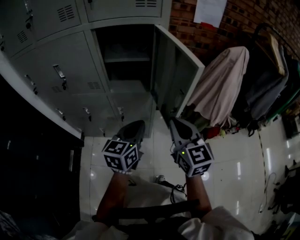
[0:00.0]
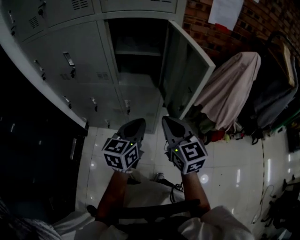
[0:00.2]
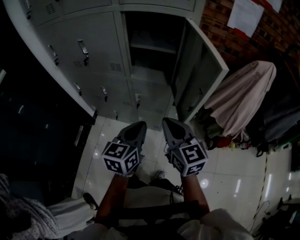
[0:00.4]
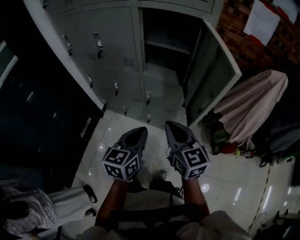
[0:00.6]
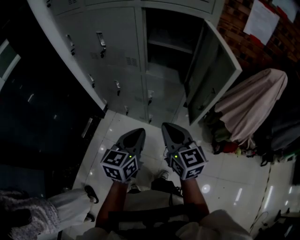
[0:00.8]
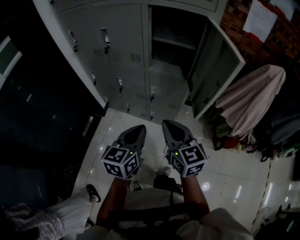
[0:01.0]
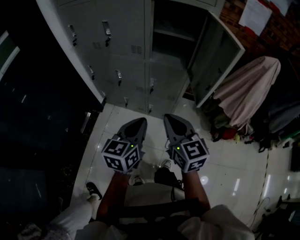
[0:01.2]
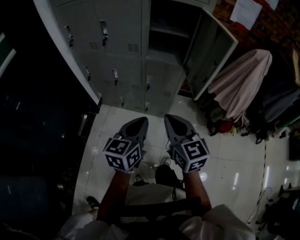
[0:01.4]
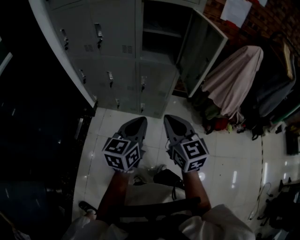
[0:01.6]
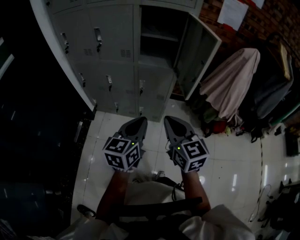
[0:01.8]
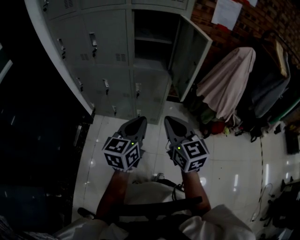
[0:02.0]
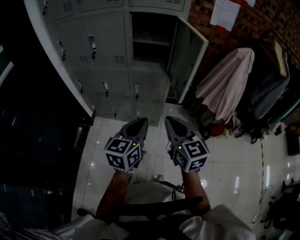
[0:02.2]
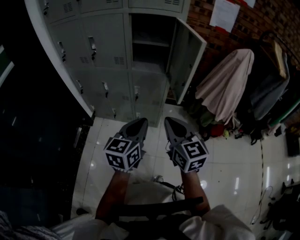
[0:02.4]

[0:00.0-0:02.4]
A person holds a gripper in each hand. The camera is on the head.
0:00.0 to 0:01.2: Both grippers move to the left and backward, approximately 20 cm. The right gripper swivels some 20 degrees.
0:01.2 to 0:02.4: The right gripper travels to the right and backward by roughly 10 cm. The left gripper goes some 5 cm to the right.

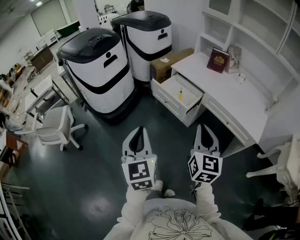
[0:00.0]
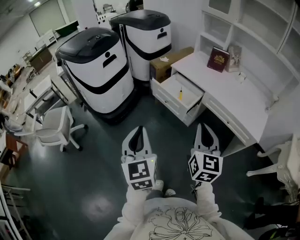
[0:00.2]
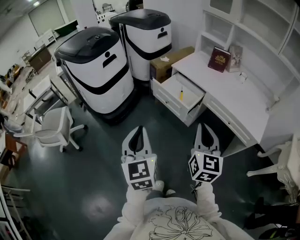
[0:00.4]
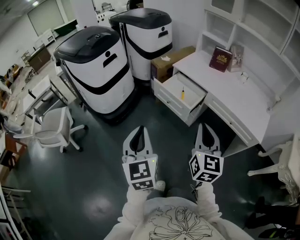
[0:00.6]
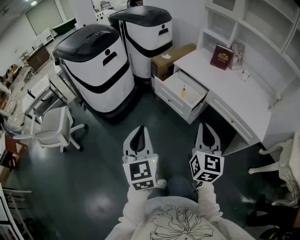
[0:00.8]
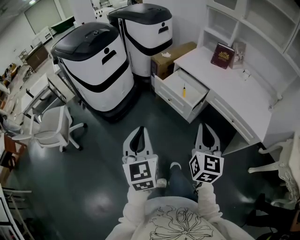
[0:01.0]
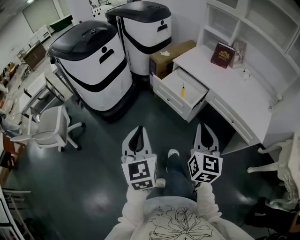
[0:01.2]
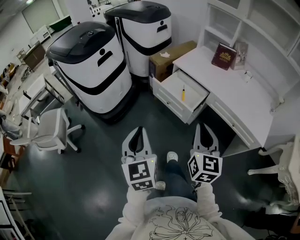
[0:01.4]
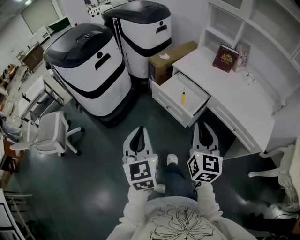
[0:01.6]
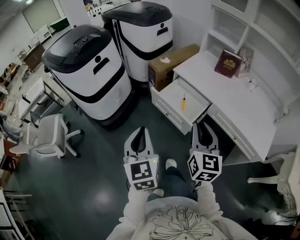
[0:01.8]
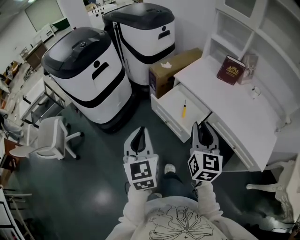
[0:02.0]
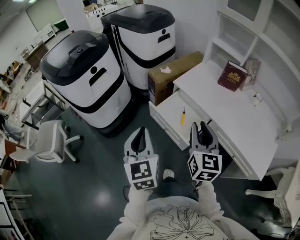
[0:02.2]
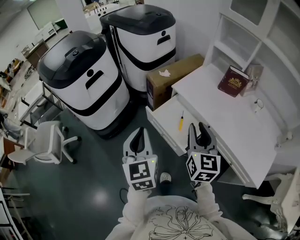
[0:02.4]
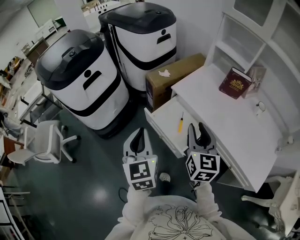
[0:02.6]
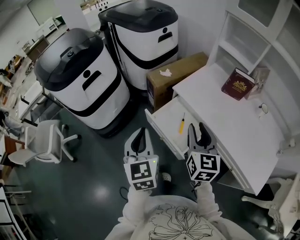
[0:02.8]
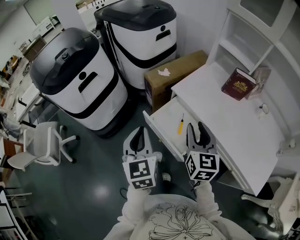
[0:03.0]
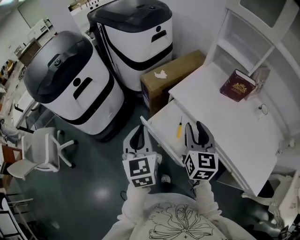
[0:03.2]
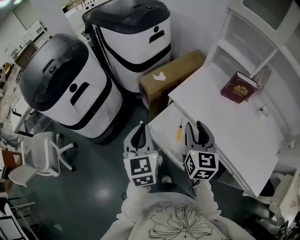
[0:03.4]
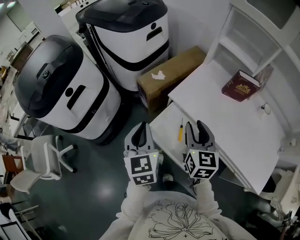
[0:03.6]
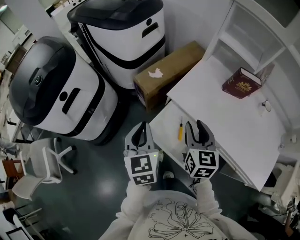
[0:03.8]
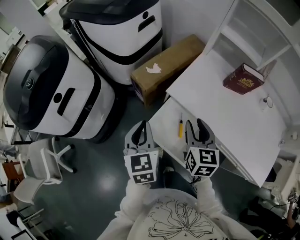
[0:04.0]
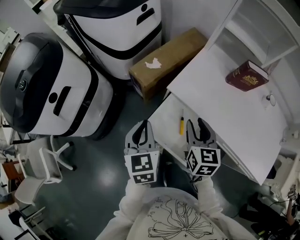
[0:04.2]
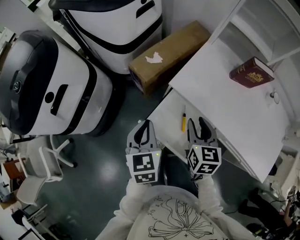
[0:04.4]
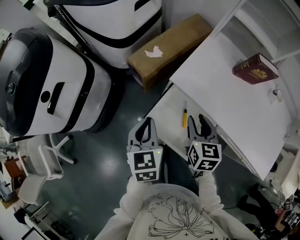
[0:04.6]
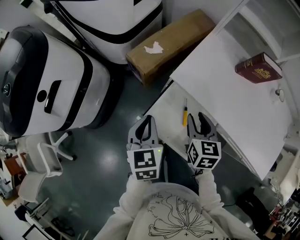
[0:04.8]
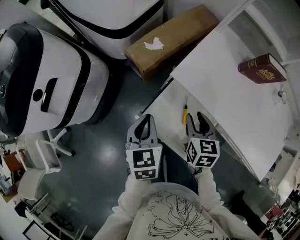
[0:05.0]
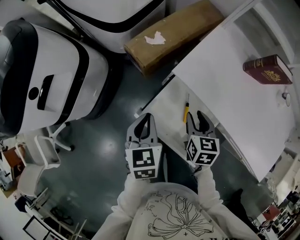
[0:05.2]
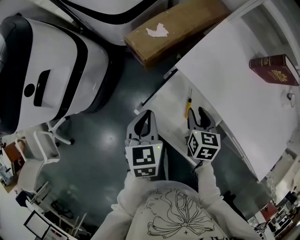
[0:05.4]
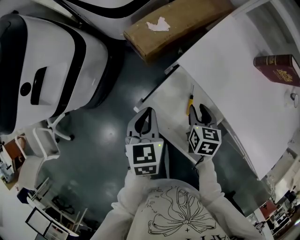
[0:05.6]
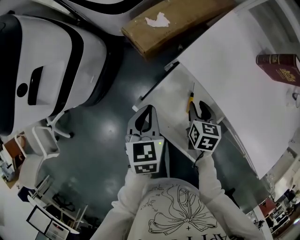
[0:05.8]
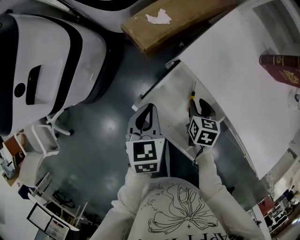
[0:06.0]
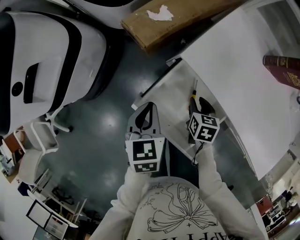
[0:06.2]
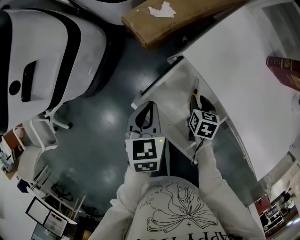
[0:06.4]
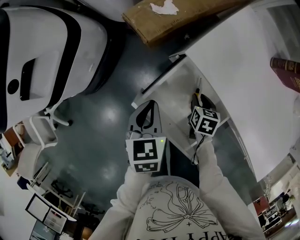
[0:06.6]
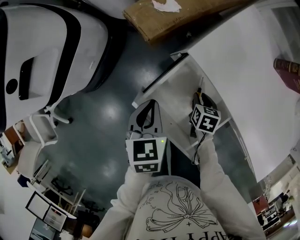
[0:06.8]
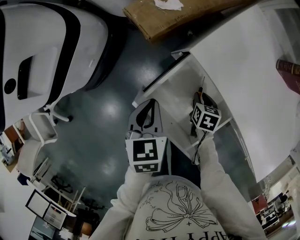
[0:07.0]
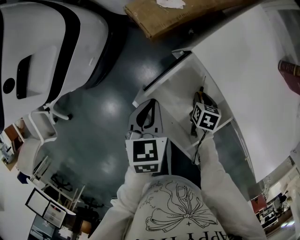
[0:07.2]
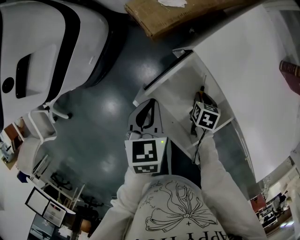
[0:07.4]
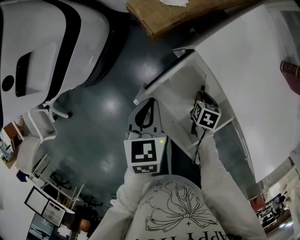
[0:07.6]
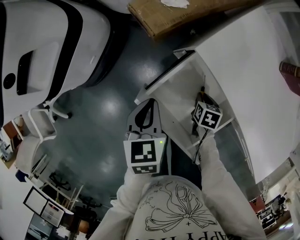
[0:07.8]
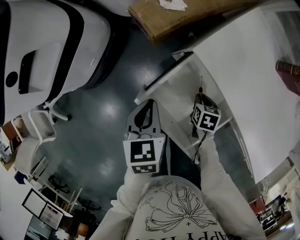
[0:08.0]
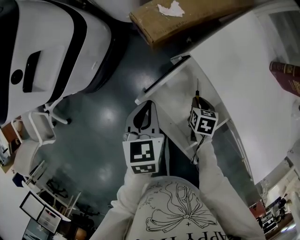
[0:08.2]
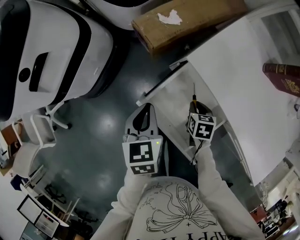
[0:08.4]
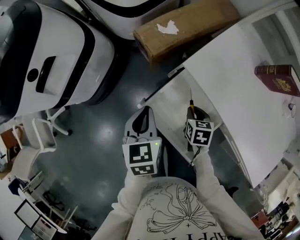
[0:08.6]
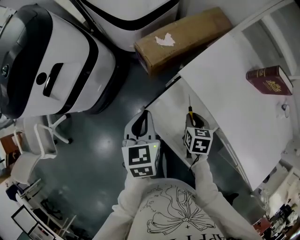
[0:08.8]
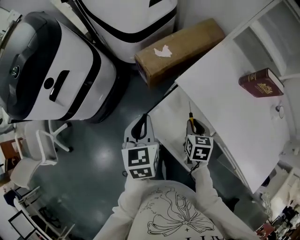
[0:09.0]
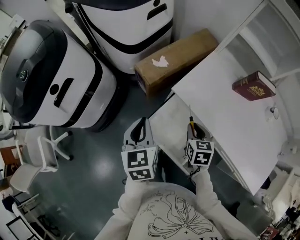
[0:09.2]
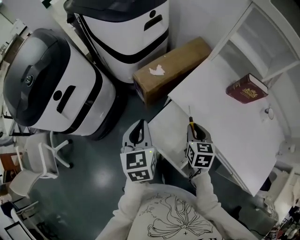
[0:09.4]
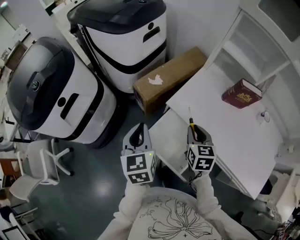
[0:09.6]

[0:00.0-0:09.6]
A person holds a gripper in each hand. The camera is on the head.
0:00.0 to 0:01.6: The two grippers go about 15 cm forward.
0:01.6 to 0:03.2: Both grippers travel together forward, roughly 35 cm. The right gripper opens up.
0:03.2 to 0:04.8: The grippers both shift downward and forward by about 20 cm. The left gripper rotates roughly 20 degrees. The right gripper rotates about 20 degrees.
0:04.8 to 0:06.4: The left gripper goes some 10 cm downward, while the right gripper travels downward by about 25 cm, and turns by approximately 20 degrees.
0:06.4 to 0:08.0: The right gripper moves some 5 cm.
0:08.0 to 0:09.6: The grippers both shift upward by about 30 cm. The left gripper rotates approximately 30 degrees, while the right gripper tips its fingers upward by roughly 30 degrees.

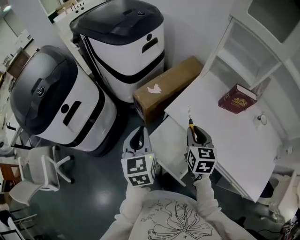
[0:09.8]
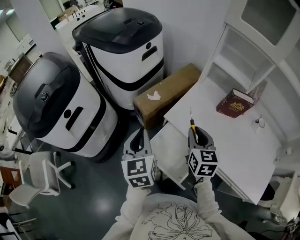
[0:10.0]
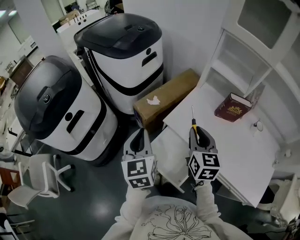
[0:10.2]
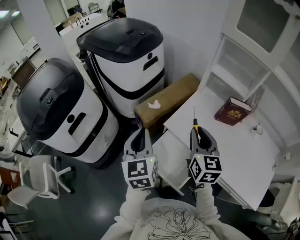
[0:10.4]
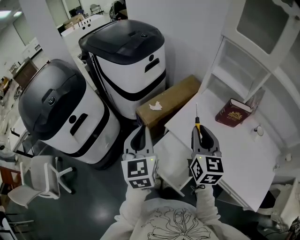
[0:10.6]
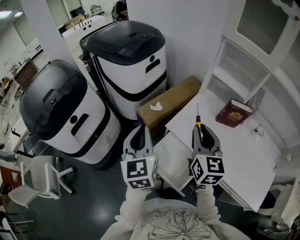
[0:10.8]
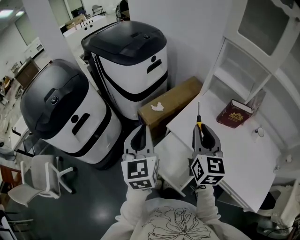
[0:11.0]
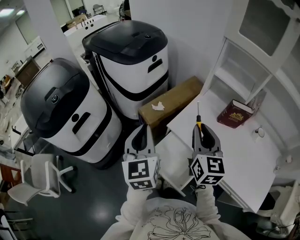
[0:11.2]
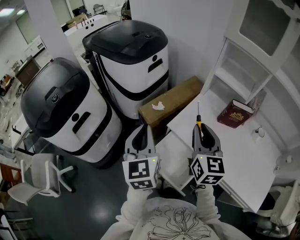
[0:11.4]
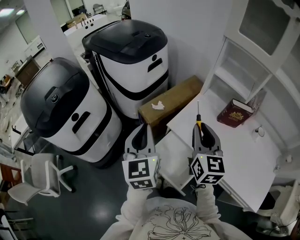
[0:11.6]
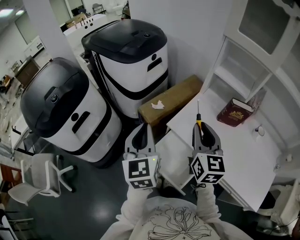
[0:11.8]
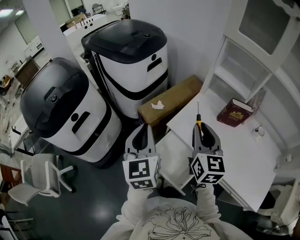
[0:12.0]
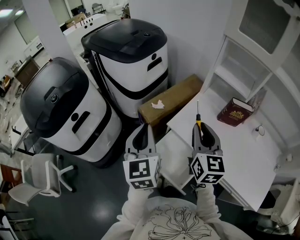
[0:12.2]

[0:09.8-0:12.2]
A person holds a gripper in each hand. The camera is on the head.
0:09.8 to 0:11.0: The grippers both shift upward by roughly 15 cm. The right gripper rotates approximately 20 degrees.
0:11.0 to 0:12.2: Both grippers stay put.

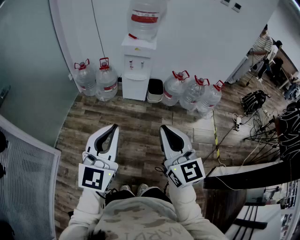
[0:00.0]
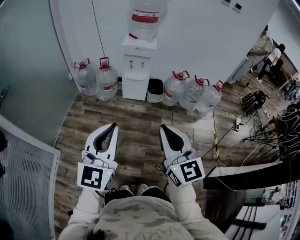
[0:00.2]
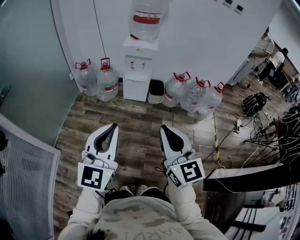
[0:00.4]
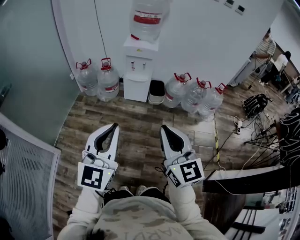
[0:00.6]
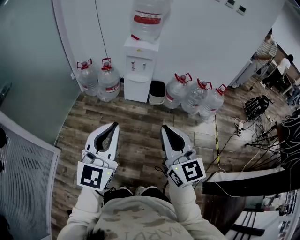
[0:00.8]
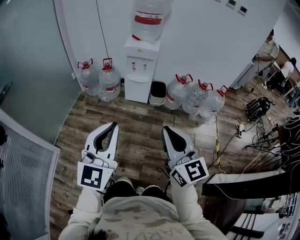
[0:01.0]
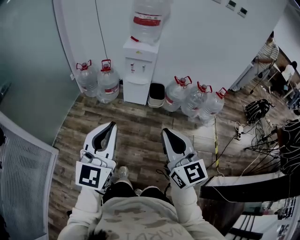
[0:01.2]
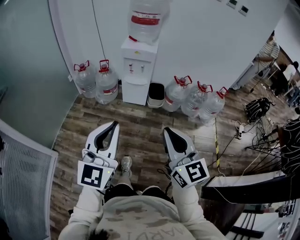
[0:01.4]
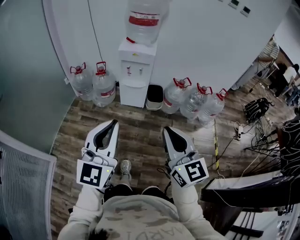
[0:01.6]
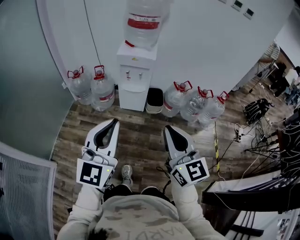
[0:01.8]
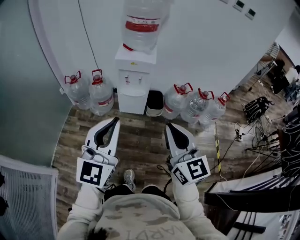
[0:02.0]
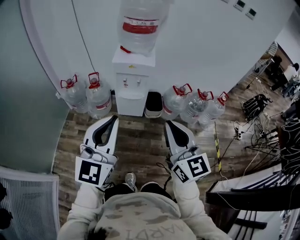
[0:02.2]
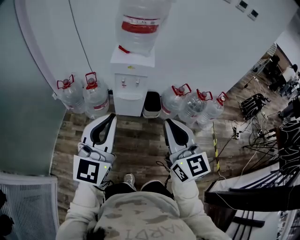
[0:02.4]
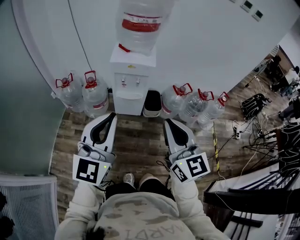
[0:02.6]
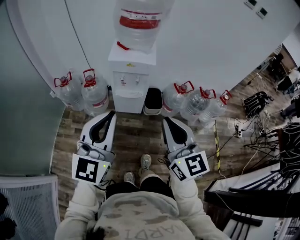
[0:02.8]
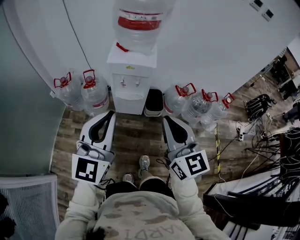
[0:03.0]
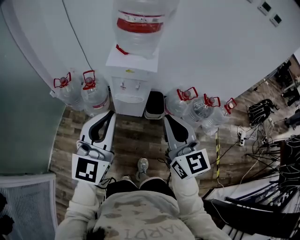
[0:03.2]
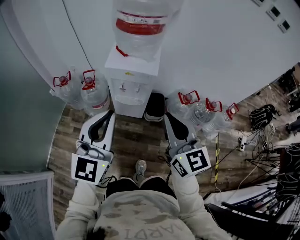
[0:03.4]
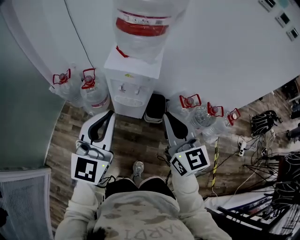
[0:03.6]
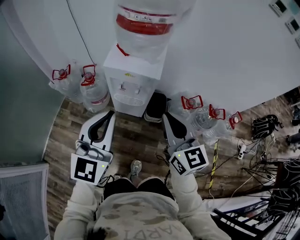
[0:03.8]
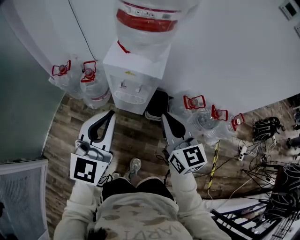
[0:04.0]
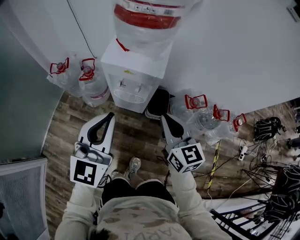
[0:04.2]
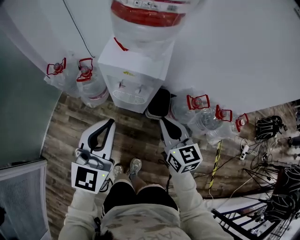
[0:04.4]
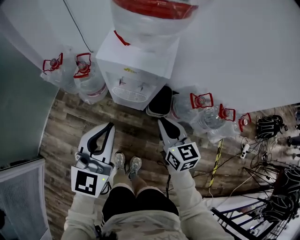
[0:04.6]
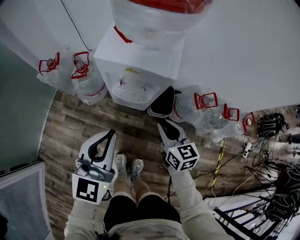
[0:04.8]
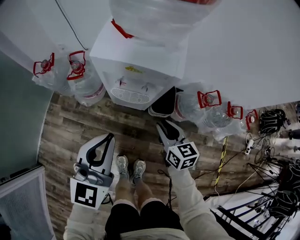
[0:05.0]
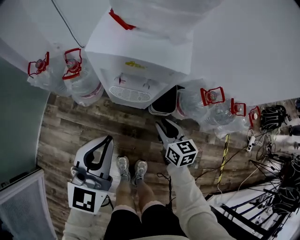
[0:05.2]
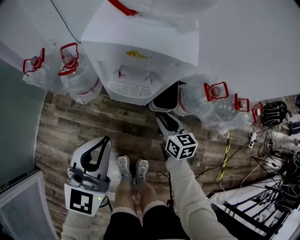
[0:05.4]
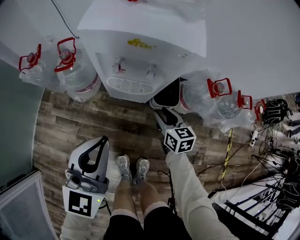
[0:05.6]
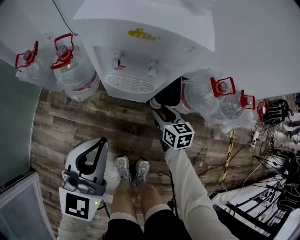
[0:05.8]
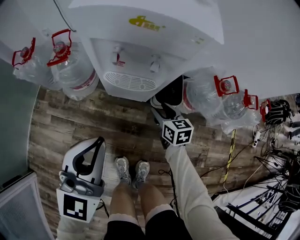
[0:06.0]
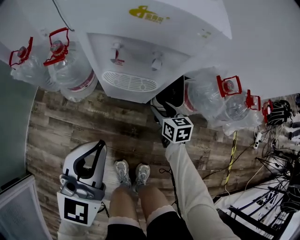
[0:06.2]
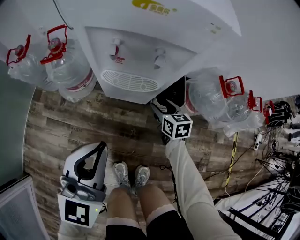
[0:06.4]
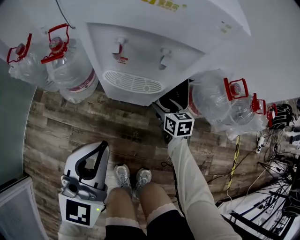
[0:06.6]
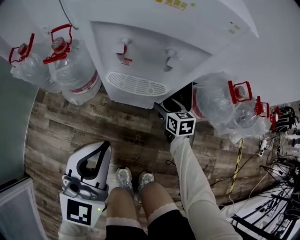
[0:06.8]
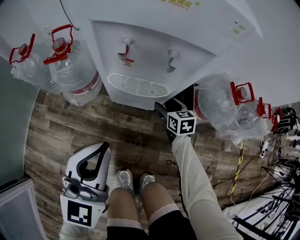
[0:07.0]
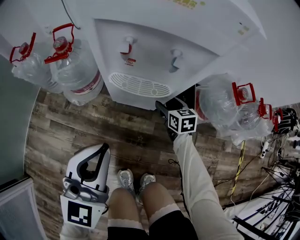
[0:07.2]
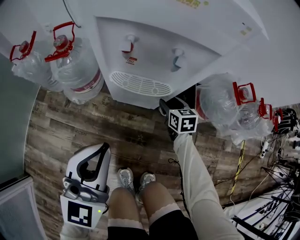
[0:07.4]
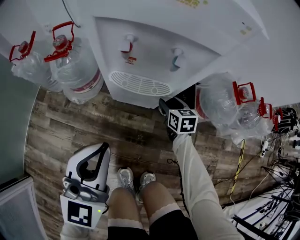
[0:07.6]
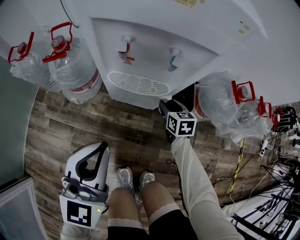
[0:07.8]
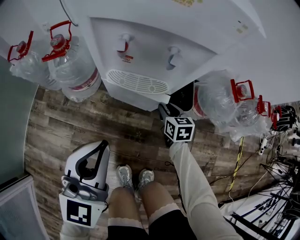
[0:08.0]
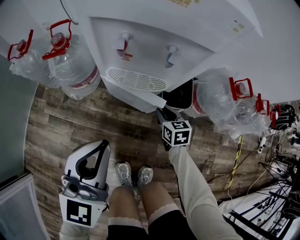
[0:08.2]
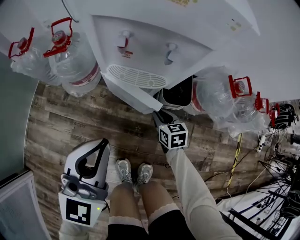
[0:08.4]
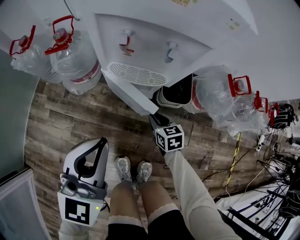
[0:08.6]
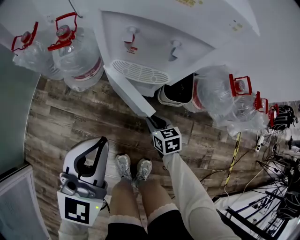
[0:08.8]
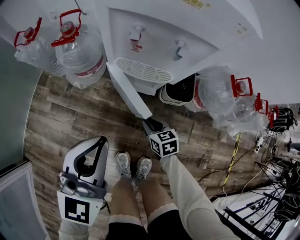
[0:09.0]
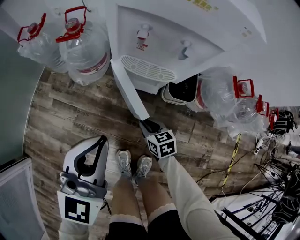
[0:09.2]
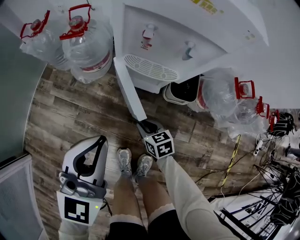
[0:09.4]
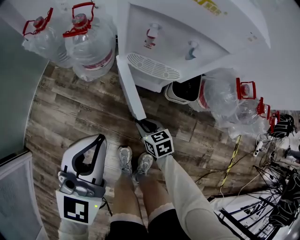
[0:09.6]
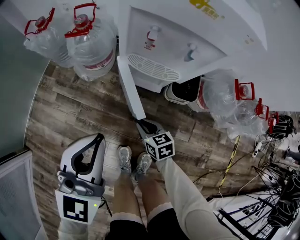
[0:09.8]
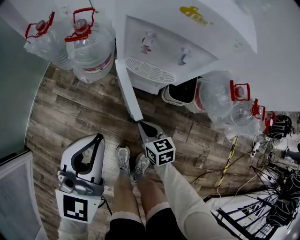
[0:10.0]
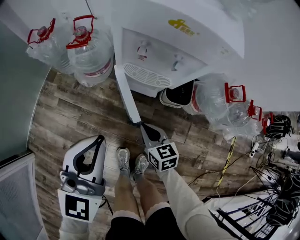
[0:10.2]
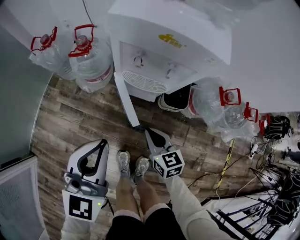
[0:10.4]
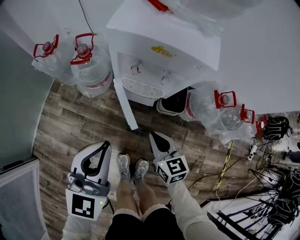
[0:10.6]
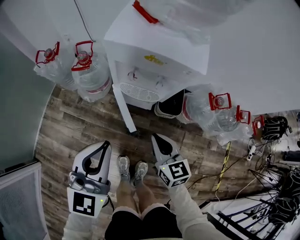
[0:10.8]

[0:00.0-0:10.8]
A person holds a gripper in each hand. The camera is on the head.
0:00.0 to 0:01.6: The right gripper goes roughly 15 cm forward and to the right; the left gripper goes about 15 cm forward.
0:01.6 to 0:03.0: Both grippers travel together forward, roughly 30 cm.
0:03.0 to 0:04.6: The right gripper is displaced downward and forward by approximately 35 cm, and swivels some 30 degrees, while the left gripper heads forward and downward, covering some 25 cm.
0:04.6 to 0:06.2: The right gripper moves downward, roughly 40 cm, and opens its fingers, while the left gripper moves downward, about 25 cm.
0:06.2 to 0:07.8: The left gripper goes roughly 5 cm downward; the right gripper moves downward and forward, approximately 10 cm.
0:07.8 to 0:09.2: The left gripper changes place by some 5 cm, while the right gripper travels backward and to the left by roughly 20 cm, and rotates roughly 20 degrees.
0:09.2 to 0:10.8: The left gripper is displaced upward by some 15 cm. The right gripper travels upward by roughly 30 cm, and swivels some 30 degrees.
